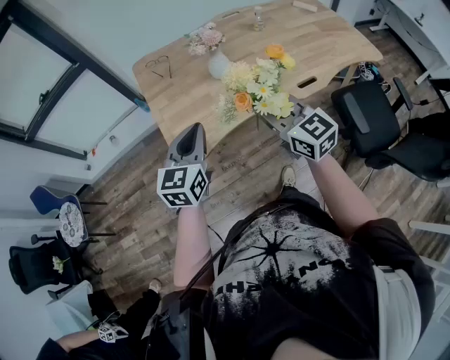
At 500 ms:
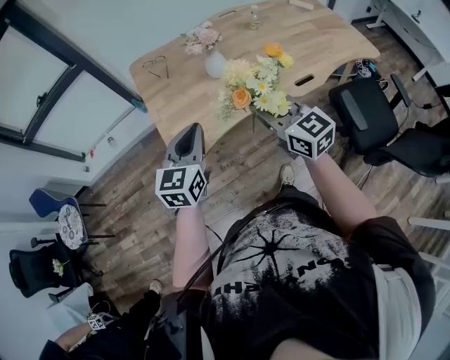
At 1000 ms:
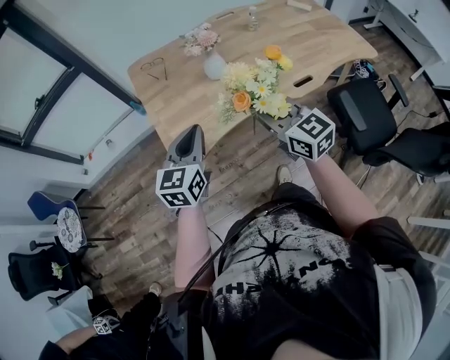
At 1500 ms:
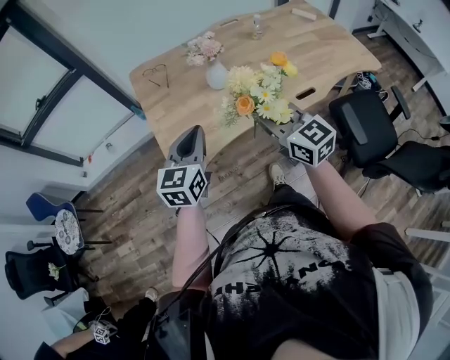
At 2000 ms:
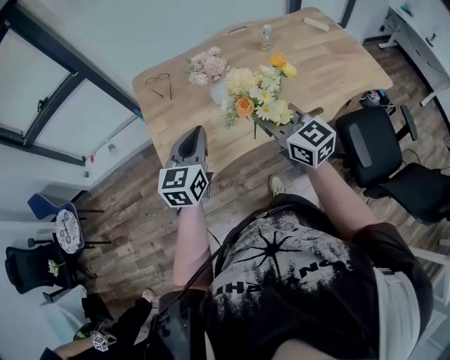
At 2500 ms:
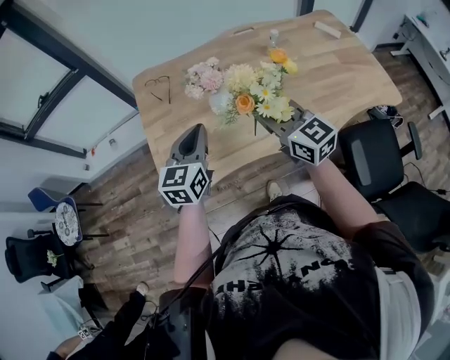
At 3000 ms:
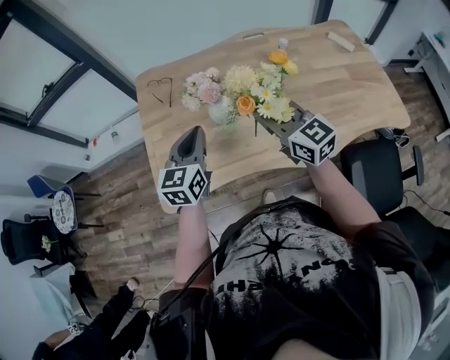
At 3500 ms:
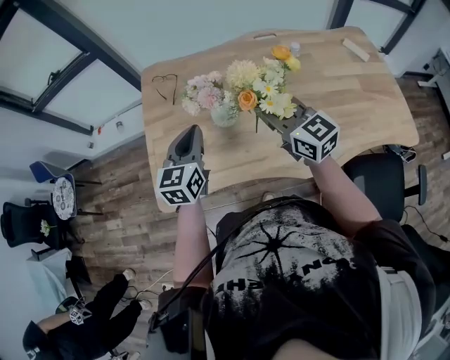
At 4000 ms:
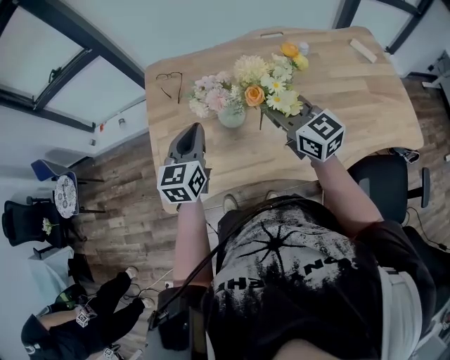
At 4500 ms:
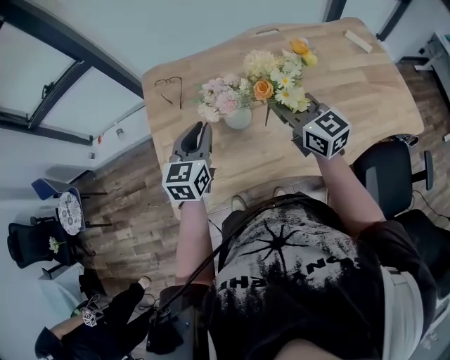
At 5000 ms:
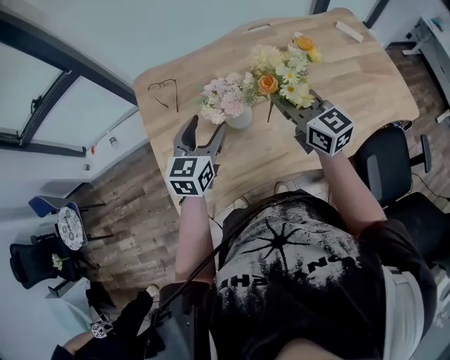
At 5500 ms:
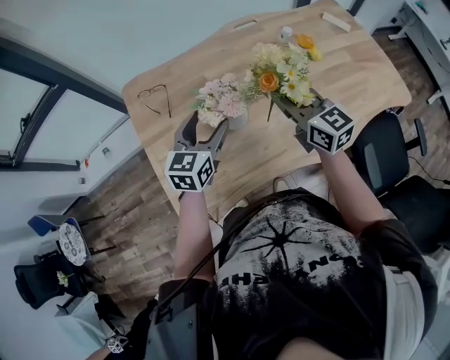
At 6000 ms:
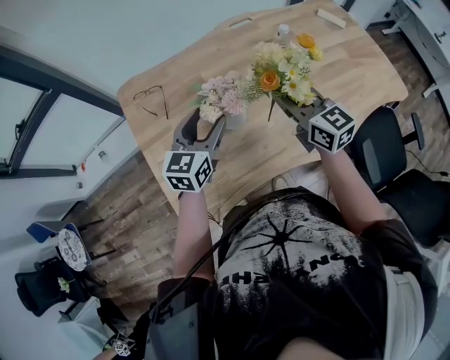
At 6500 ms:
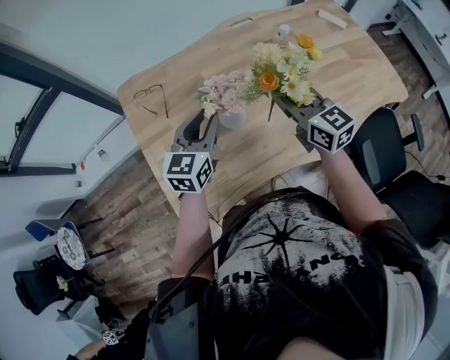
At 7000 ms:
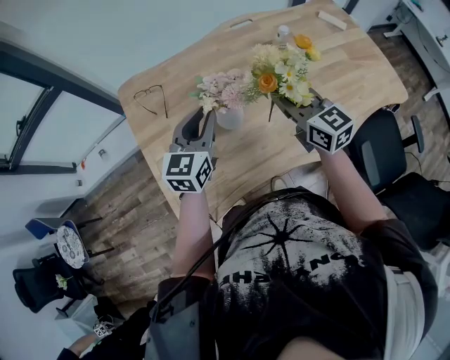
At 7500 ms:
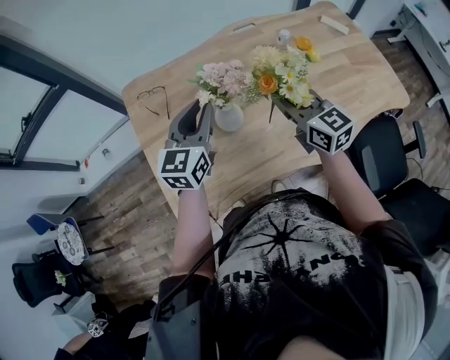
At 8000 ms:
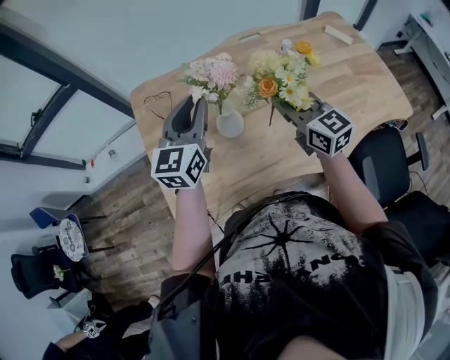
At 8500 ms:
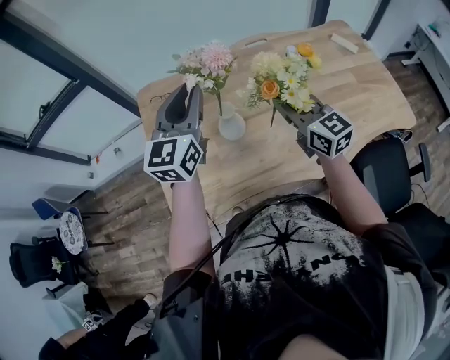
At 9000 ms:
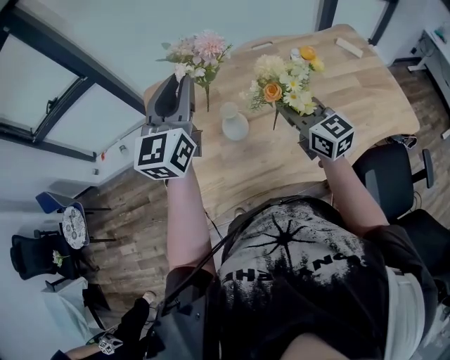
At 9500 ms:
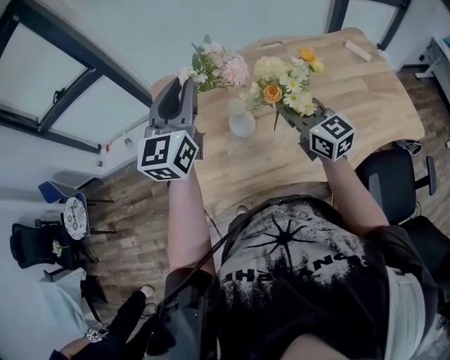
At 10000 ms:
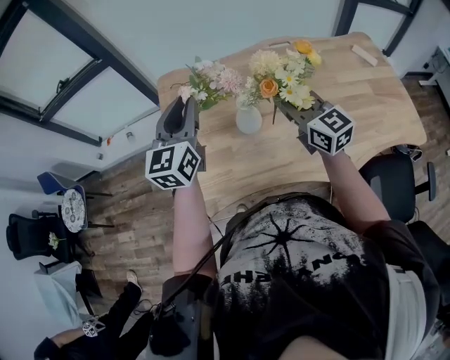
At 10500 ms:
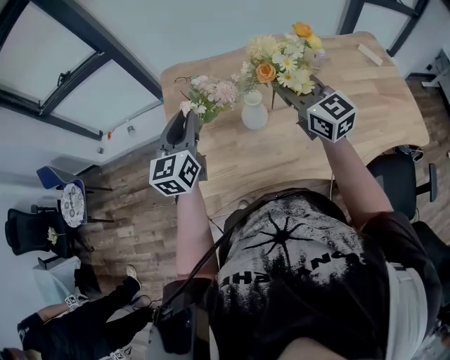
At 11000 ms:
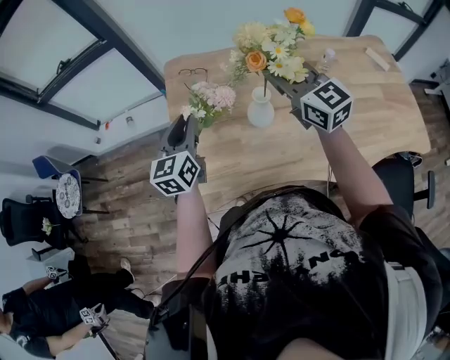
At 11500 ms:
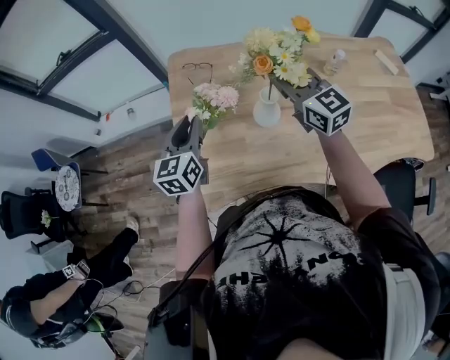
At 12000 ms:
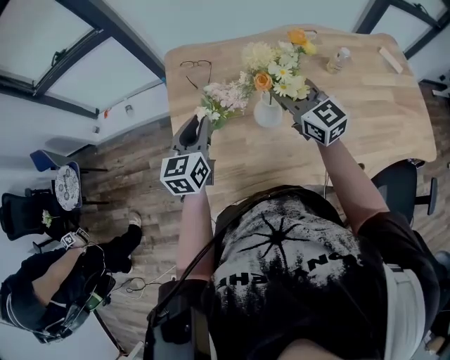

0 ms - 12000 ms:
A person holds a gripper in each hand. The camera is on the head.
0 ms - 2000 ms: The two grippers go some 10 cm forward.
2000 ms - 4000 ms: Both grippers travel together forward and to the right, roughly 20 cm.
4000 ms - 6000 ms: The right gripper changes its angle by roughly 20 degrees; the left gripper travels forward by approximately 5 cm, turns by about 30 degrees, and opens.
6000 ms - 8000 ms: The left gripper shifts roughly 10 cm upward, and closes.
8000 ms - 10000 ms: The left gripper travels upward and back again, approximately 10 cm each way.
10000 ms - 12000 ms: The right gripper heads forward and to the left, covering approximately 10 cm. The left gripper moves downward and to the left, some 15 cm.

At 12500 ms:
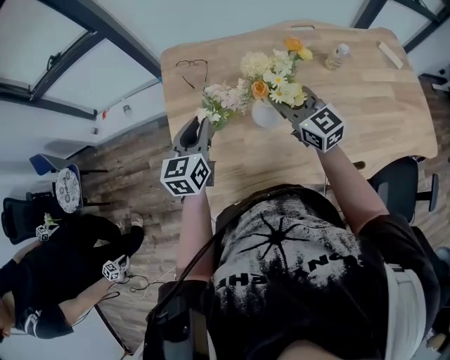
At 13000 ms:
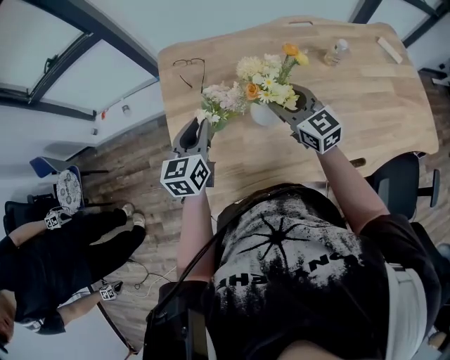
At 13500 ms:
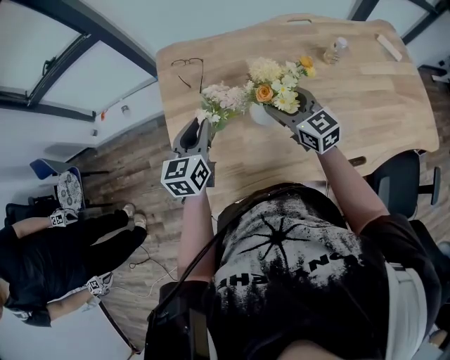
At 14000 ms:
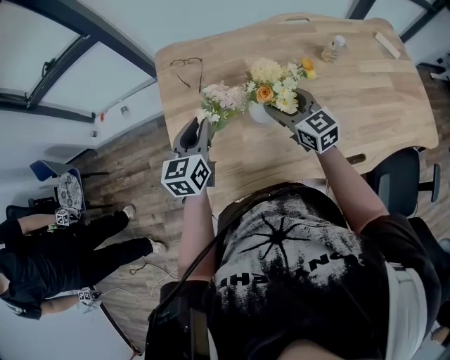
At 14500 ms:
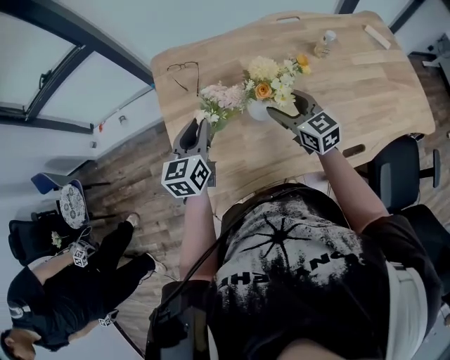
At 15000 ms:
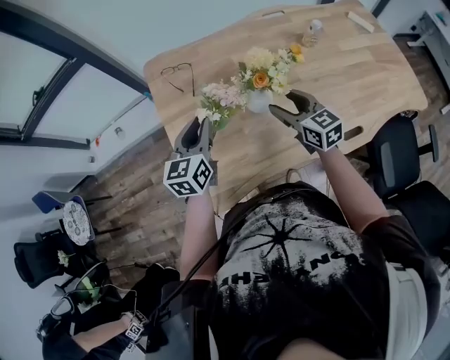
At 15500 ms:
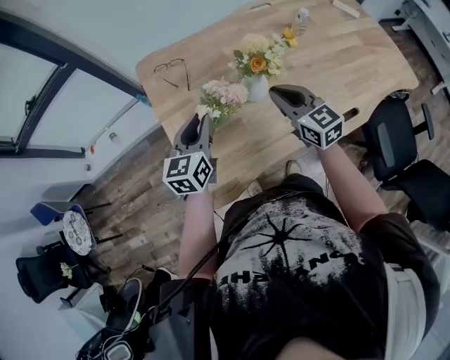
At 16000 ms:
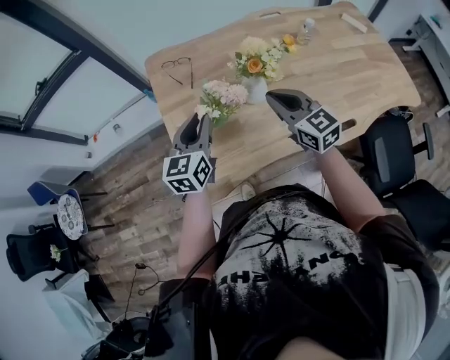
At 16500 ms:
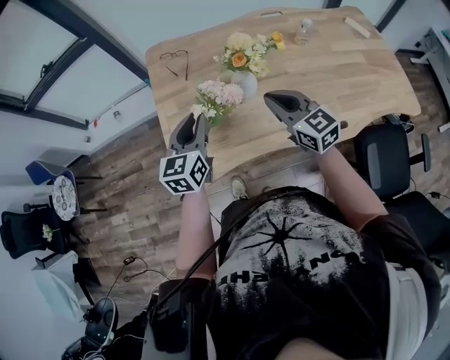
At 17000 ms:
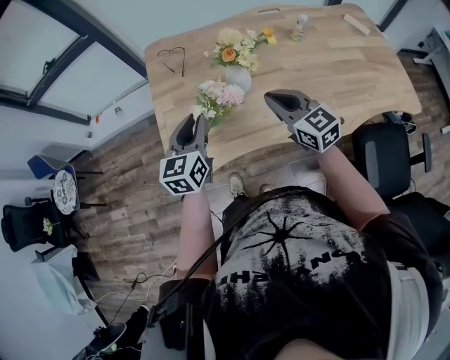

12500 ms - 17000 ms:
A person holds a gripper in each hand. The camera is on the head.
12500 ms - 14500 ms: The right gripper goes roughly 5 cm downward, and opens its fingers.
14500 ms - 17000 ms: The left gripper moves backward, about 15 cm. The right gripper is displaced backward and upward by approximately 15 cm, and closes up.

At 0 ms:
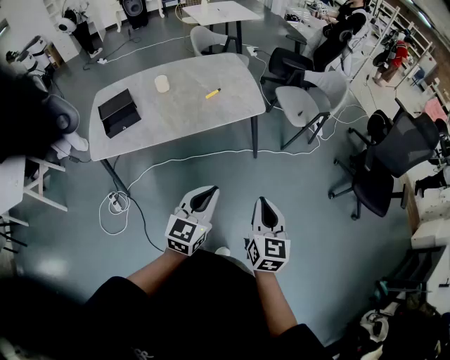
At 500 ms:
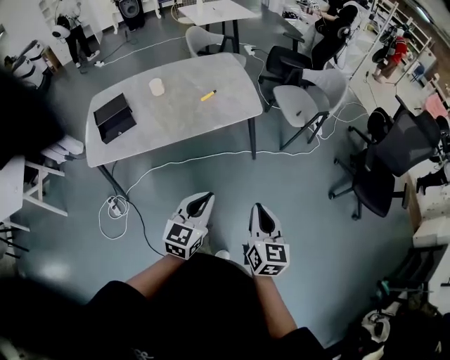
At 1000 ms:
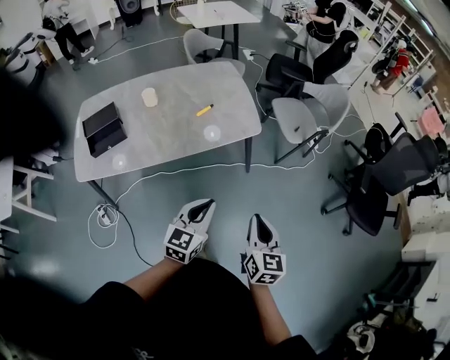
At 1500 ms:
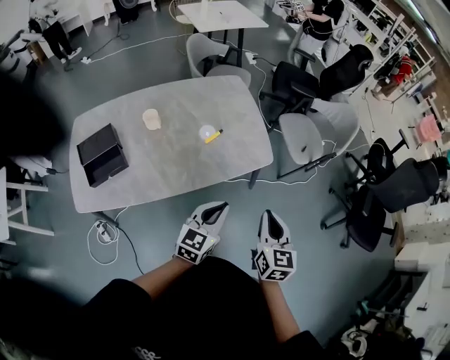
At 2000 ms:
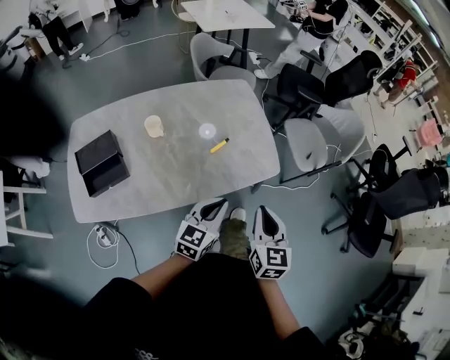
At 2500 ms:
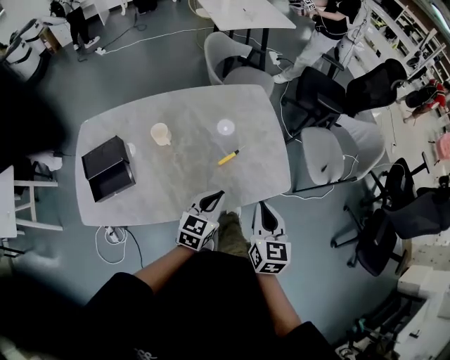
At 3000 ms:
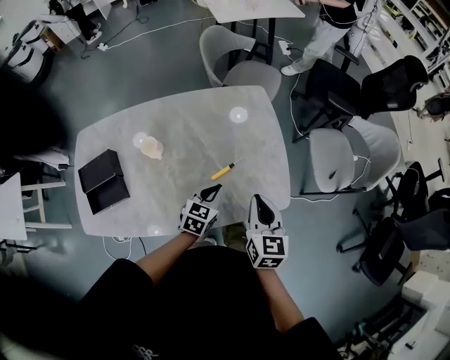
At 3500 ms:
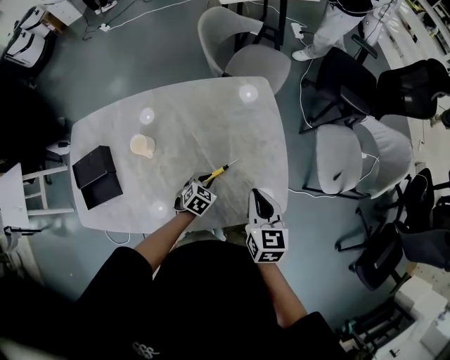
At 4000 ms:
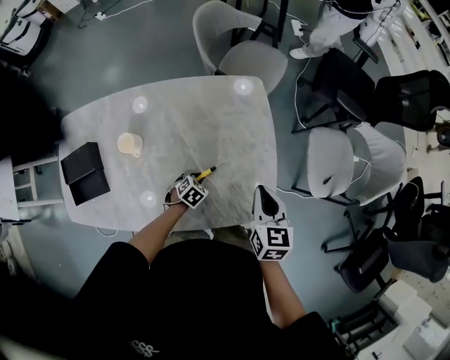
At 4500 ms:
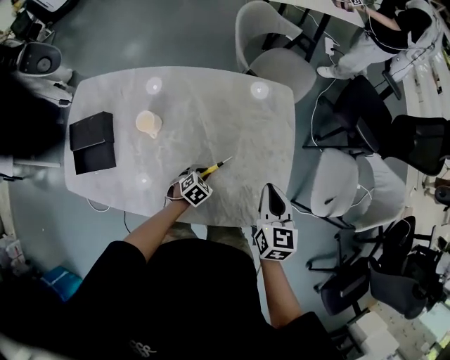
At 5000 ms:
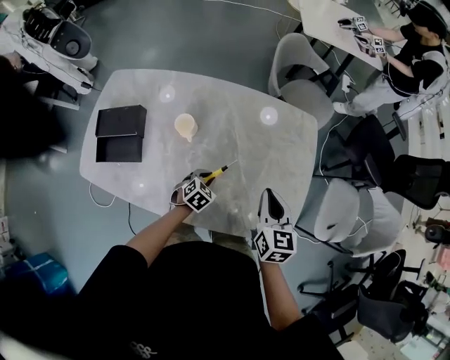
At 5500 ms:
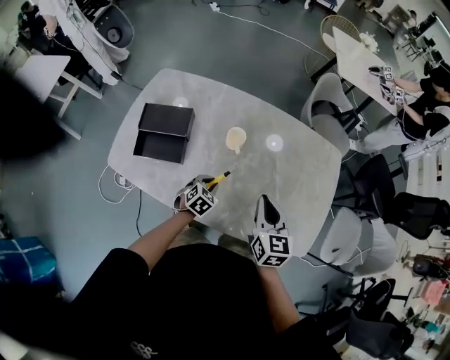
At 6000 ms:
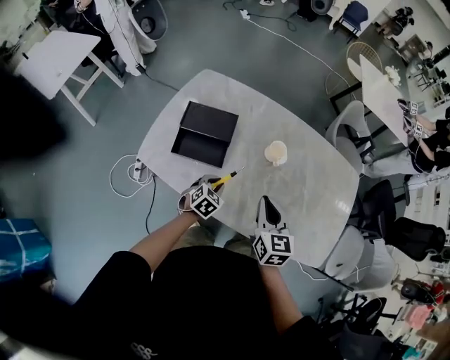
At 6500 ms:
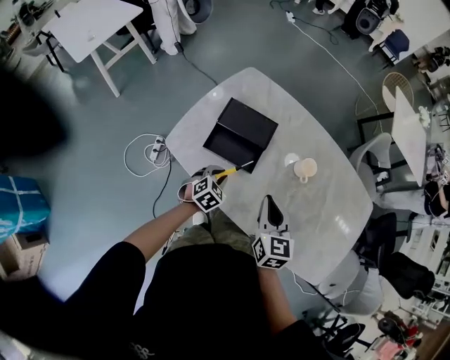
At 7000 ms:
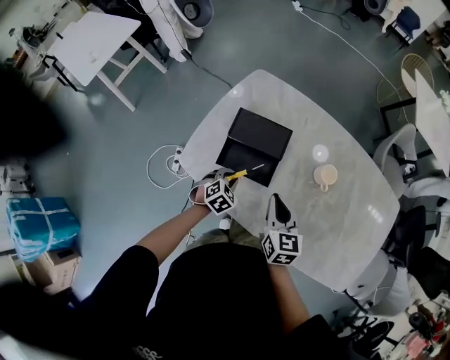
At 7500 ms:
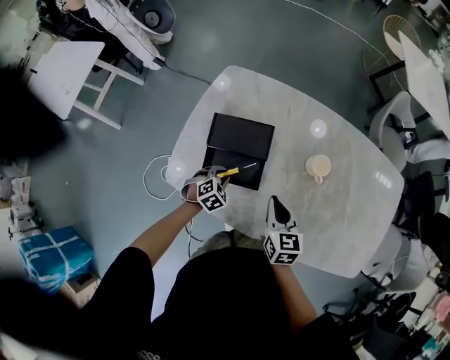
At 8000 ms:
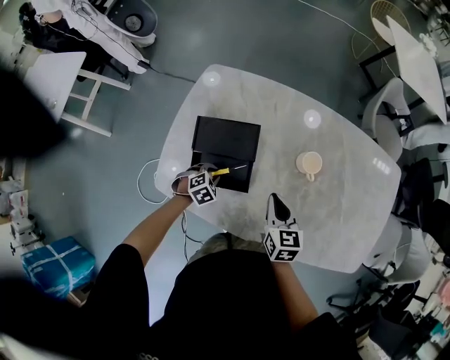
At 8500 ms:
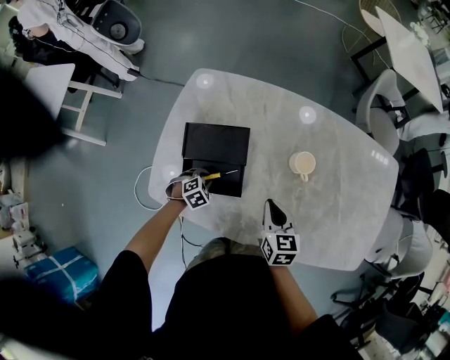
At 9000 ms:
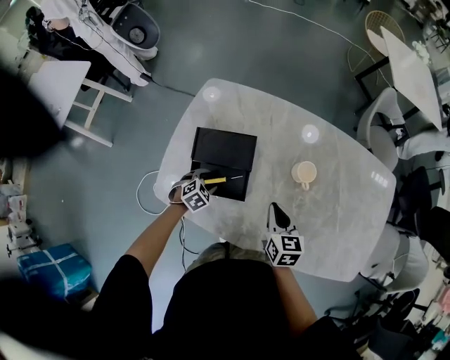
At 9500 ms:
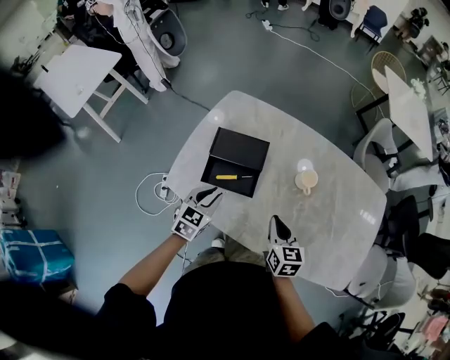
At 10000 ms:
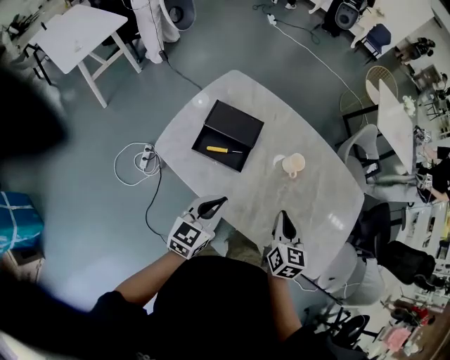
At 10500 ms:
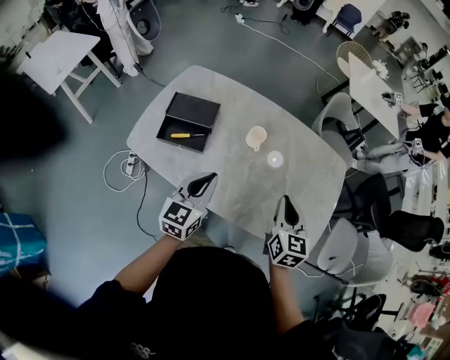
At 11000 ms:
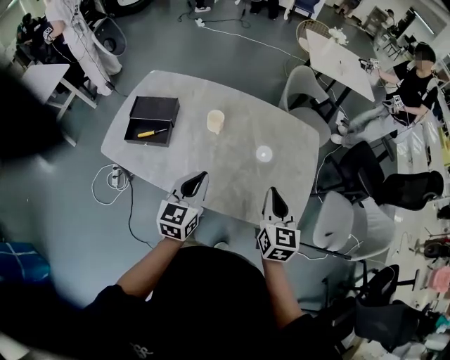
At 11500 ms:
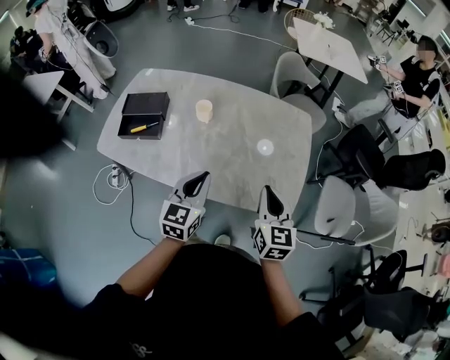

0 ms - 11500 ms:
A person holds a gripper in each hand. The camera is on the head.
0 ms - 2000 ms: The pair of grippers is taken forward and to the left, some 40 cm.
2000 ms - 4000 ms: The left gripper shifts roughly 50 cm downward and forward, and angles its fingers downward, by about 60 degrees; the right gripper shifts about 40 cm forward, and changes its angle by some 20 degrees.
4000 ms - 6000 ms: The two grippers travel together, approximately 50 cm. The right gripper changes its angle by about 30 degrees. Meanwhile the left gripper swivels about 40 degrees.
6000 ms - 7500 ms: The left gripper heads to the left and forward, covering roughly 20 cm, and swivels about 20 degrees; the right gripper goes some 20 cm to the left, forward and downward.
7500 ms - 9500 ms: The left gripper travels upward and backward by roughly 20 cm, angles its fingers upward, by some 30 degrees, and opens and closes again. Meanwhile the right gripper travels backward by approximately 5 cm.
9500 ms - 11500 ms: The pair of grippers is taken to the right and backward, roughly 50 cm. The right gripper changes its angle by roughly 20 degrees.
